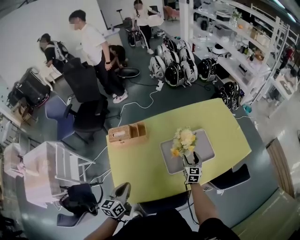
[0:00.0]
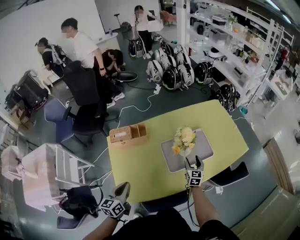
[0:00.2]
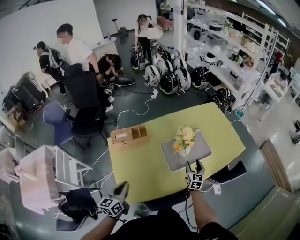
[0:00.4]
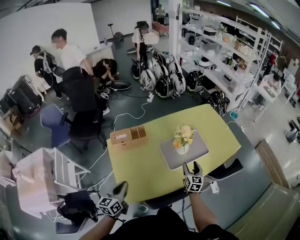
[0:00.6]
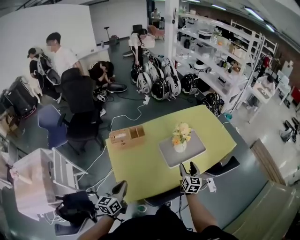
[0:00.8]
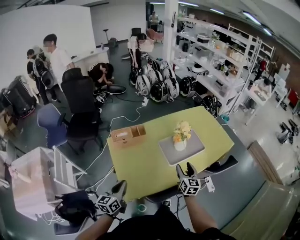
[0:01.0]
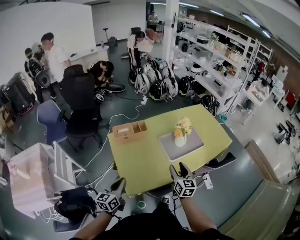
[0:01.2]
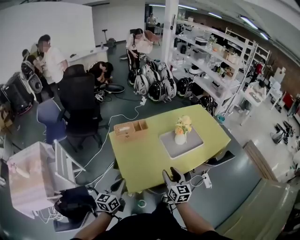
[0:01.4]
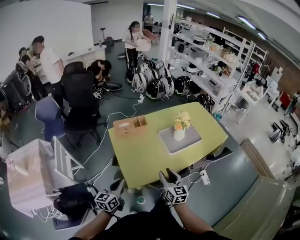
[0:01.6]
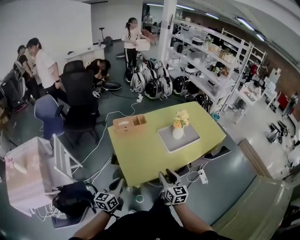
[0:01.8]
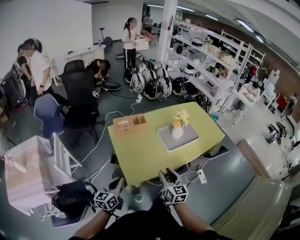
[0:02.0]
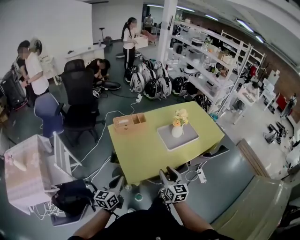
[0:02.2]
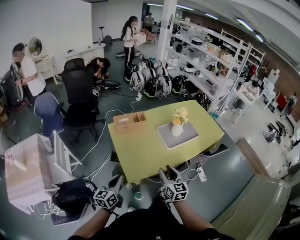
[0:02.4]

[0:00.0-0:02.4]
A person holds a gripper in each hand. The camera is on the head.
0:00.0 to 0:01.2: The right gripper shifts about 40 cm backward, upward and to the left. The left gripper travels backward and to the left by about 20 cm.
0:01.2 to 0:02.4: The right gripper heads backward and to the left, covering about 15 cm. Meanwhile the left gripper shifts roughly 10 cm backward.

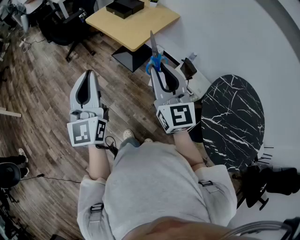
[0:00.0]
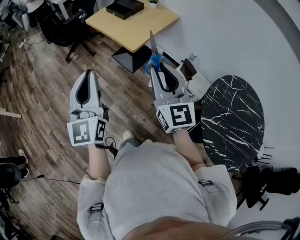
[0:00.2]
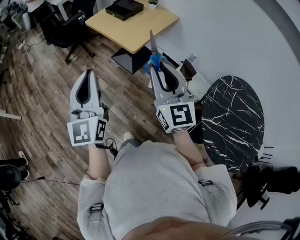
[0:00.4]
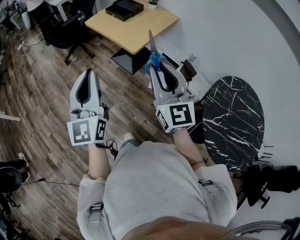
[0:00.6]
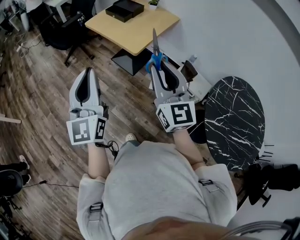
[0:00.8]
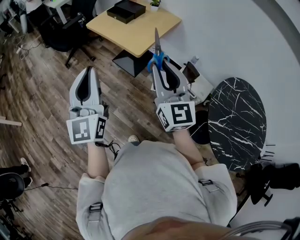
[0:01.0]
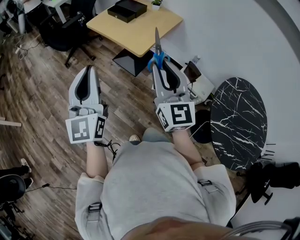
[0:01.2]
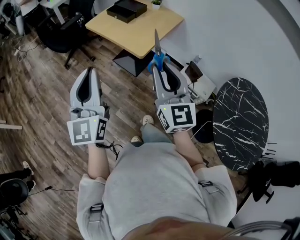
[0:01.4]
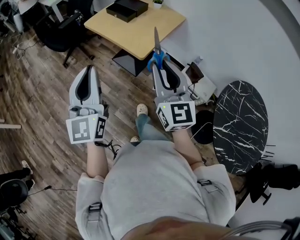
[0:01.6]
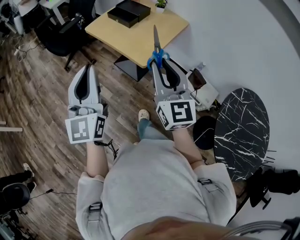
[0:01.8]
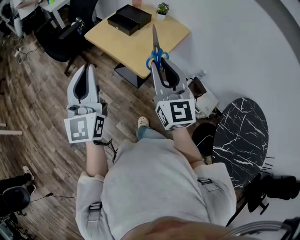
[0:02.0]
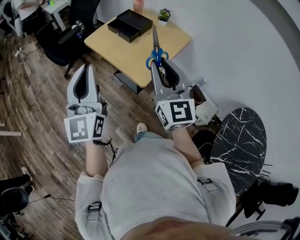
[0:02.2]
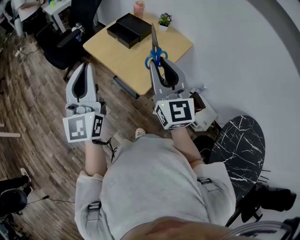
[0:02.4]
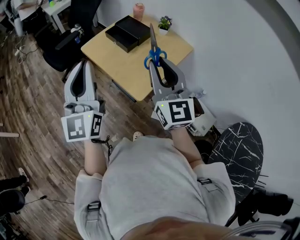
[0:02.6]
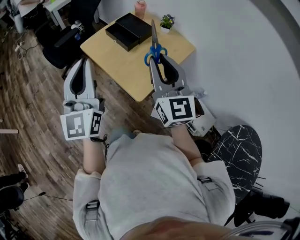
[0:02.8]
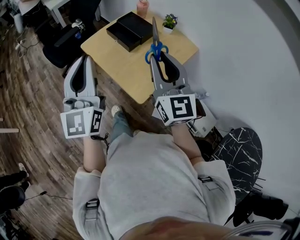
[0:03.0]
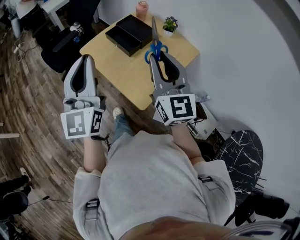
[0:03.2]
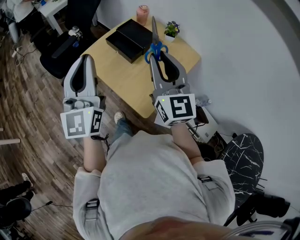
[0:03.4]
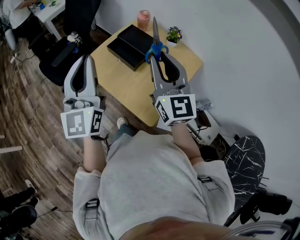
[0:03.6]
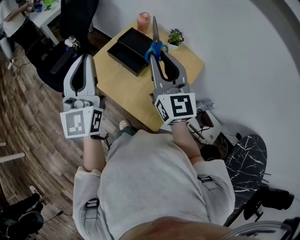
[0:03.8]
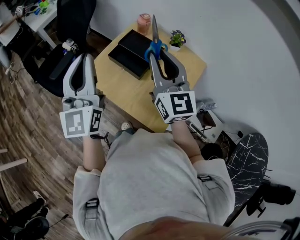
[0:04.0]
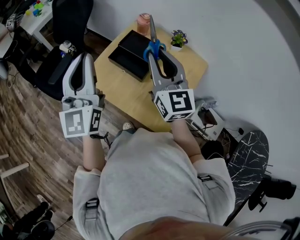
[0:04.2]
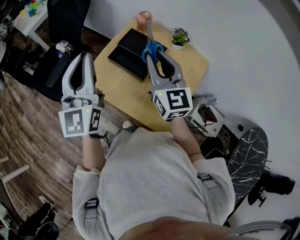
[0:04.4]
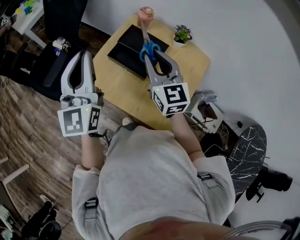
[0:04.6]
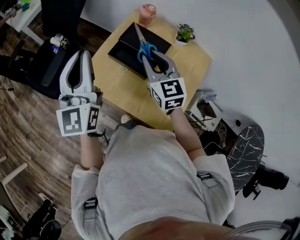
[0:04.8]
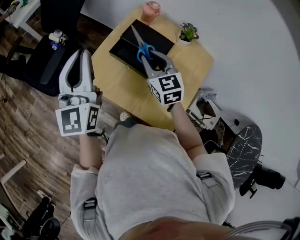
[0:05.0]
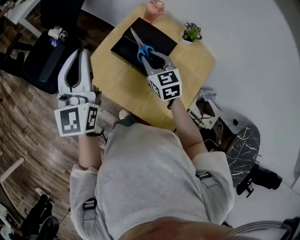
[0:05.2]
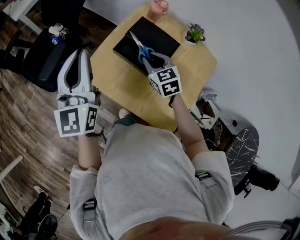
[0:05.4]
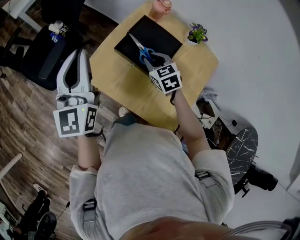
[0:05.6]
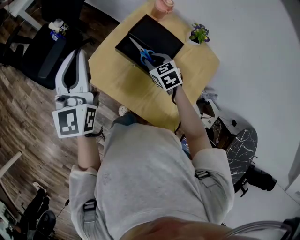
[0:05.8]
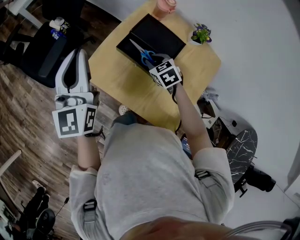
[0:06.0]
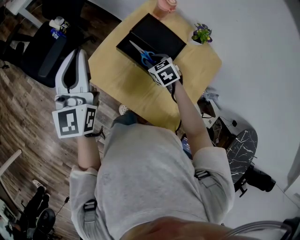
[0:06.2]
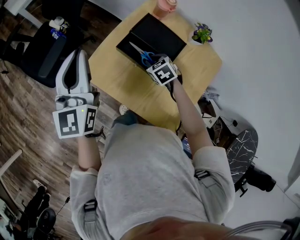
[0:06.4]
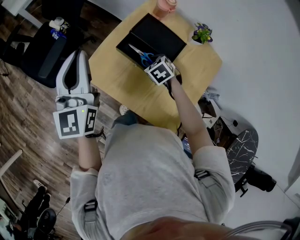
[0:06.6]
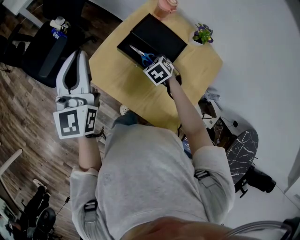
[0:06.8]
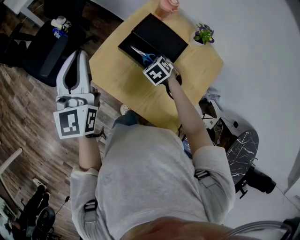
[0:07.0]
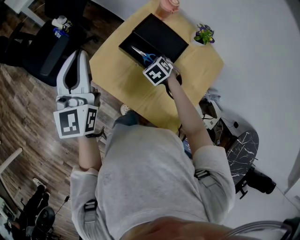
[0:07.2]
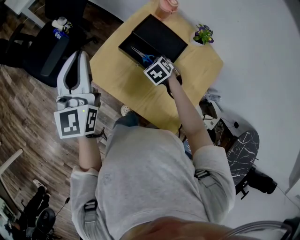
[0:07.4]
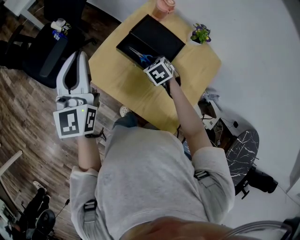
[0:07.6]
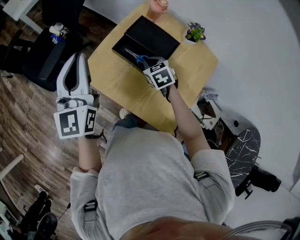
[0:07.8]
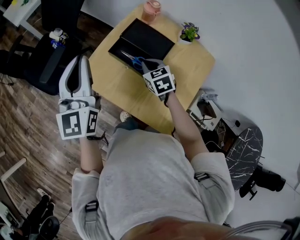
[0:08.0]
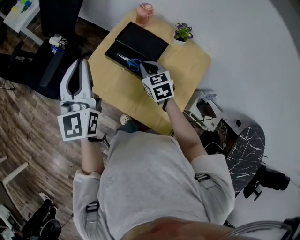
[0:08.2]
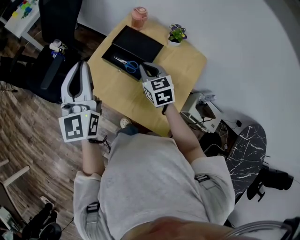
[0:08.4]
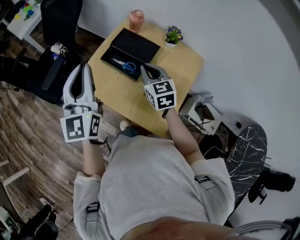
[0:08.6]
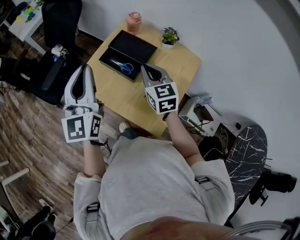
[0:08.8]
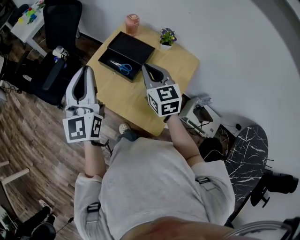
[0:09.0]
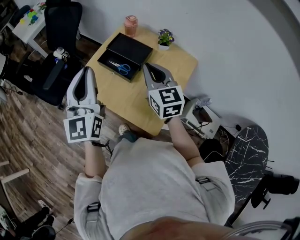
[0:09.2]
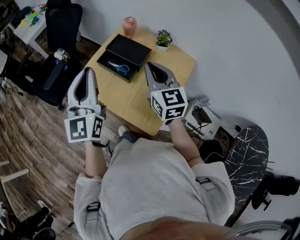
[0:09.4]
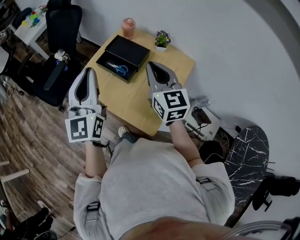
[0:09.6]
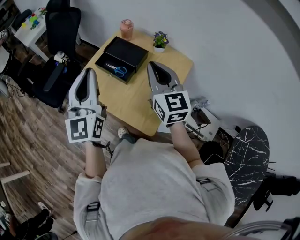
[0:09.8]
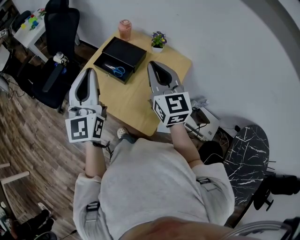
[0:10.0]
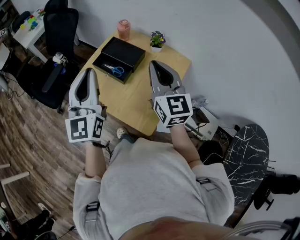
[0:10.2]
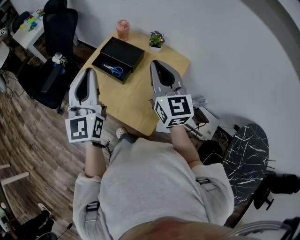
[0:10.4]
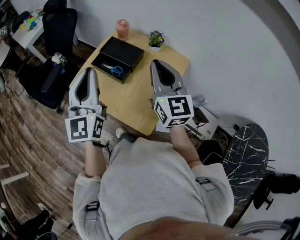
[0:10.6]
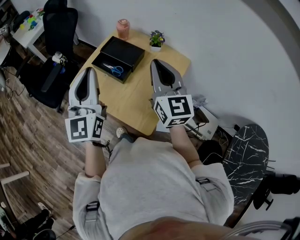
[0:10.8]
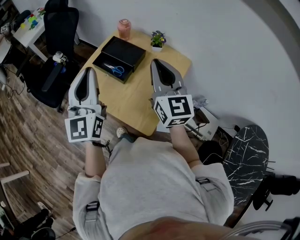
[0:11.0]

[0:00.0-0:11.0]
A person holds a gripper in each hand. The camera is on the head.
0:00.0 to 0:01.6: The grippers both shift forward and to the left by about 15 cm.
0:01.6 to 0:03.2: The two grippers go about 35 cm forward.
0:03.2 to 0:04.8: The left gripper moves forward, about 30 cm. The right gripper moves forward and downward, approximately 30 cm, and rotates approximately 20 degrees.
0:04.8 to 0:06.2: The right gripper goes roughly 20 cm downward, and tilts its fingers approximately 40 degrees downward. The left gripper is displaced downward by about 5 cm.
0:06.2 to 0:07.8: The grippers stay close to where they were, moving slightly.
0:07.8 to 0:09.4: The left gripper heads backward, to the right and upward, covering roughly 20 cm; the right gripper shifts some 30 cm upward and backward, and tilts its fingers about 40 degrees upward.
0:09.4 to 0:11.0: The right gripper shifts about 5 cm upward.

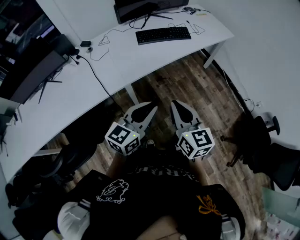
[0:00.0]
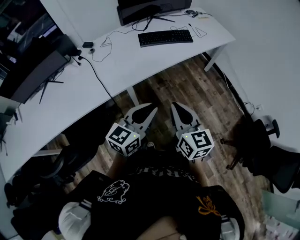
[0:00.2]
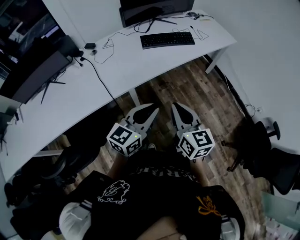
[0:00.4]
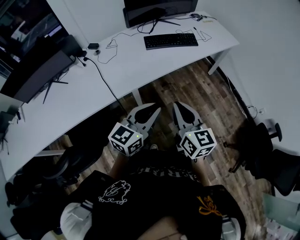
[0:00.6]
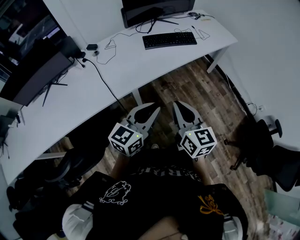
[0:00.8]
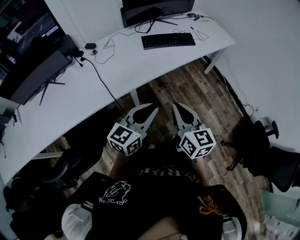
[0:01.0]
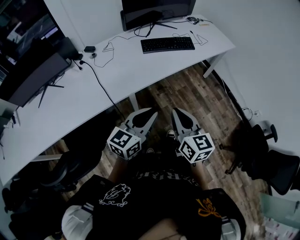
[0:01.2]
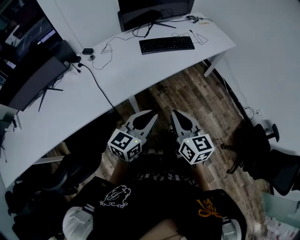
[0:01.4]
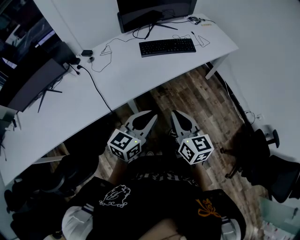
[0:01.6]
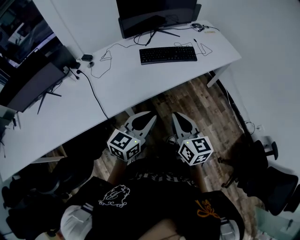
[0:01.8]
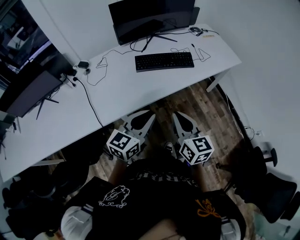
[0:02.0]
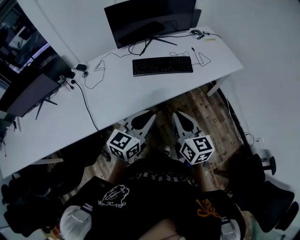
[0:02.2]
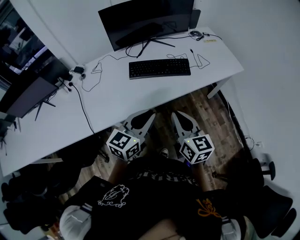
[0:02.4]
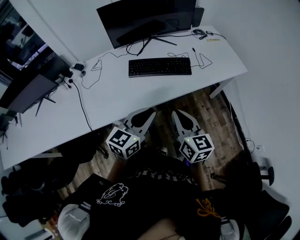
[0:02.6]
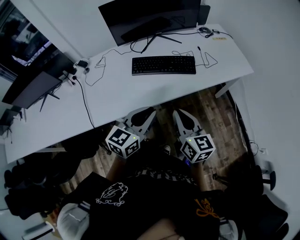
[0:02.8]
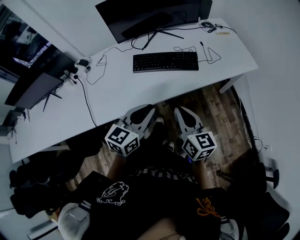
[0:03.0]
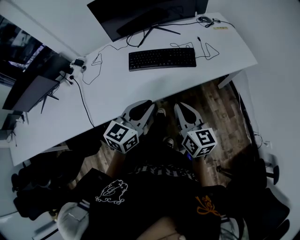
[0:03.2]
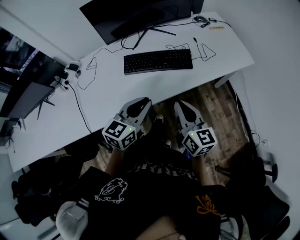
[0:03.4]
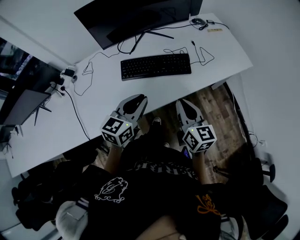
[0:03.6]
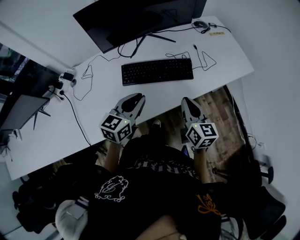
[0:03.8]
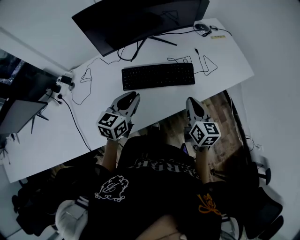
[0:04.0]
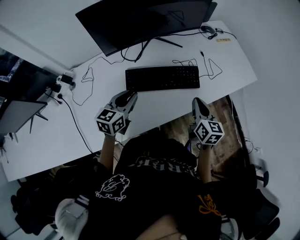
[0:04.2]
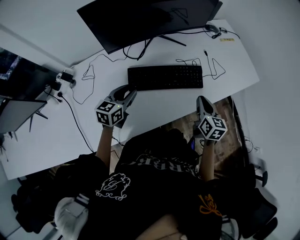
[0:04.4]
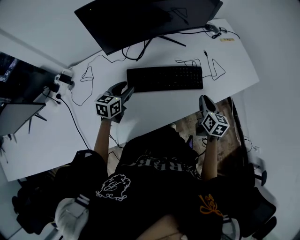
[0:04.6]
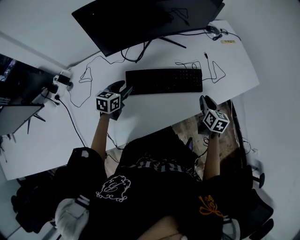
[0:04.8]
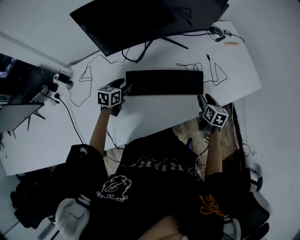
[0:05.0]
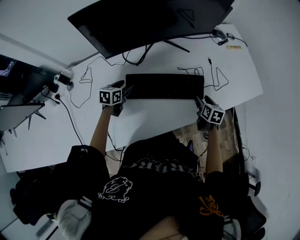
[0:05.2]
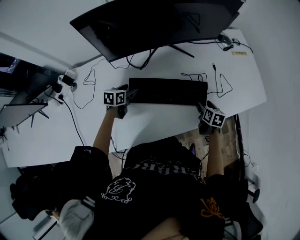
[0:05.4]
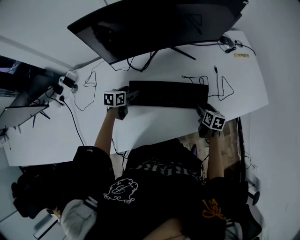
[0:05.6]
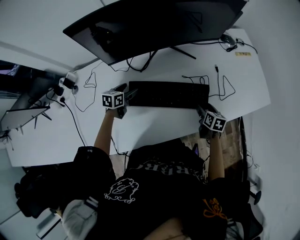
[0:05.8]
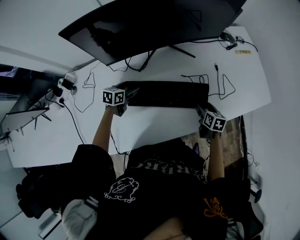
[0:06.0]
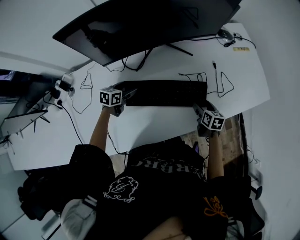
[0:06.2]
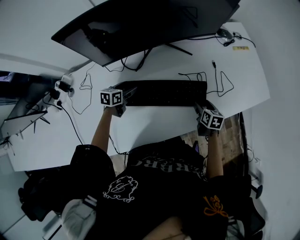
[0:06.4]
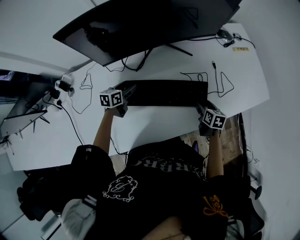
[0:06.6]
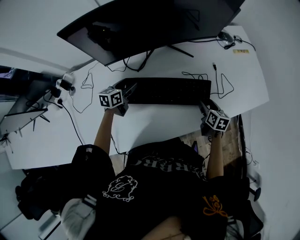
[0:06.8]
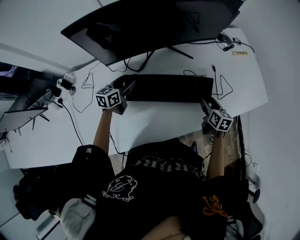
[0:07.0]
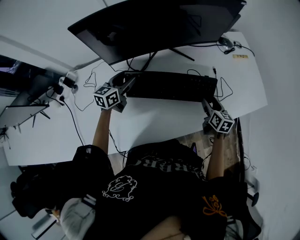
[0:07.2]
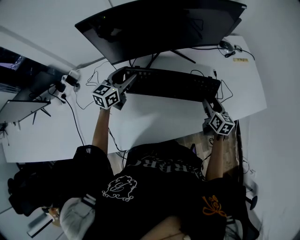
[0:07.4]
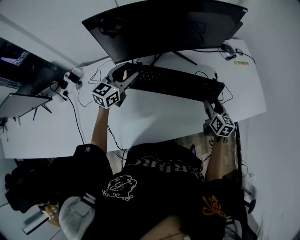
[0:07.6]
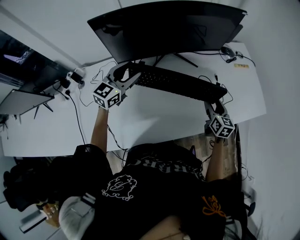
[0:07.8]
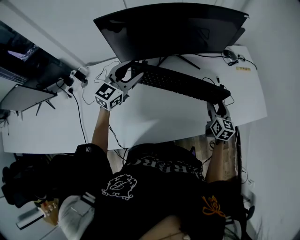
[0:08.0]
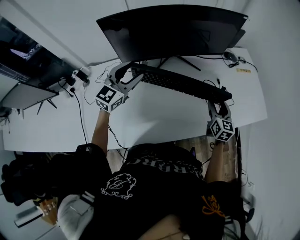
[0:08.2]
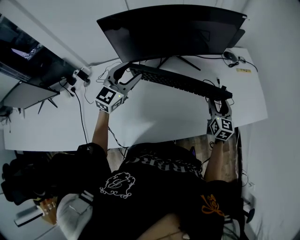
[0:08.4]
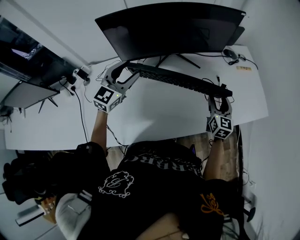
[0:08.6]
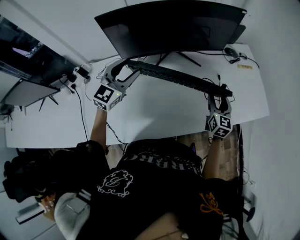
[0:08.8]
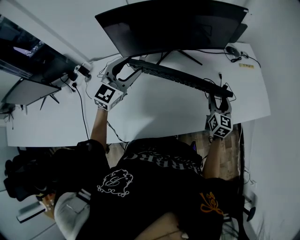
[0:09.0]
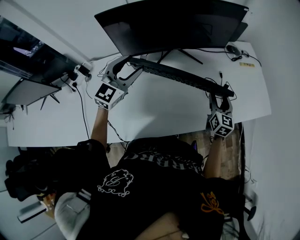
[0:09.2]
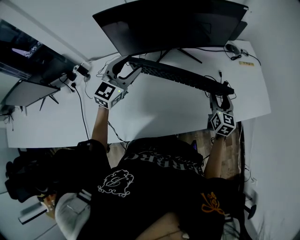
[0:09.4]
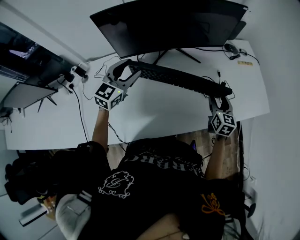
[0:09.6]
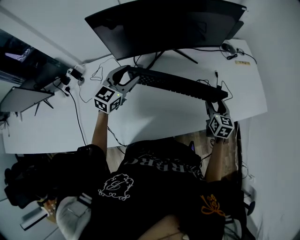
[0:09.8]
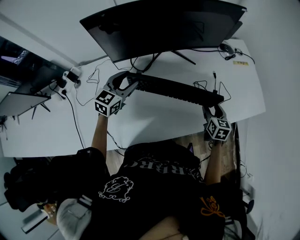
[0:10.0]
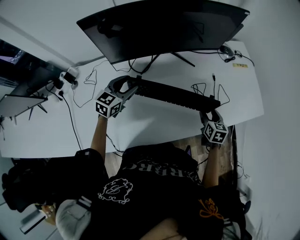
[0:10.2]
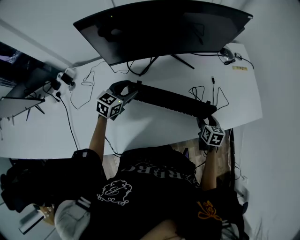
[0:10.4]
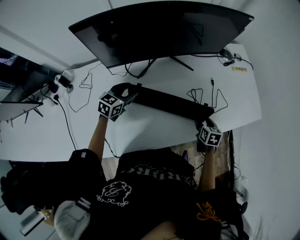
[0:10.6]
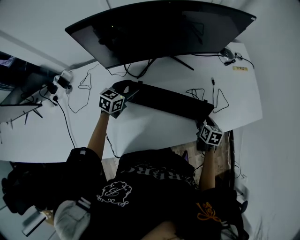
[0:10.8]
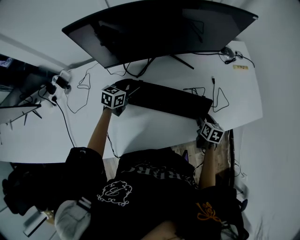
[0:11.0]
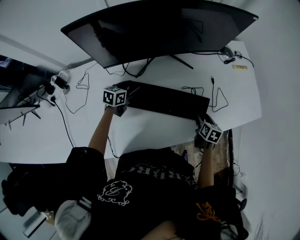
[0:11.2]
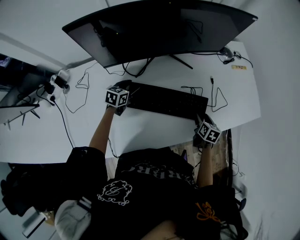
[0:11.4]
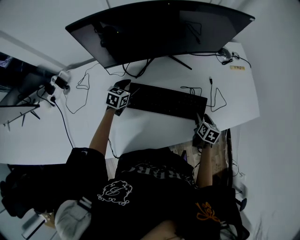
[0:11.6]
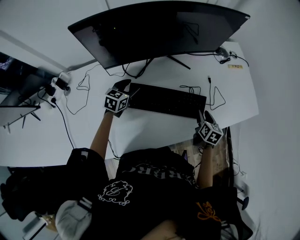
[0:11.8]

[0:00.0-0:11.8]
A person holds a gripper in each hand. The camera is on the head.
0:00.0 to 0:01.4: The left gripper moves roughly 5 cm, while the right gripper moves some 5 cm.
0:01.4 to 0:03.0: Both grippers move forward and to the right, some 35 cm.
0:03.0 to 0:04.4: The right gripper heads forward and downward, covering some 30 cm, and turns by about 20 degrees. Meanwhile the left gripper moves forward, to the left and downward, some 35 cm.
0:04.4 to 0:06.0: The two grippers go approximately 20 cm downward and forward. The right gripper changes its angle by roughly 30 degrees, and opens its fingers; the left gripper turns by about 20 degrees, and opens up.
0:06.0 to 0:07.4: The left gripper heads upward, covering roughly 20 cm, and rotates some 30 degrees; the right gripper shifts some 10 cm upward.
0:07.4 to 0:08.8: The right gripper heads upward, covering approximately 10 cm, and turns by approximately 20 degrees, while the left gripper shifts roughly 15 cm upward and backward, and changes its angle by some 30 degrees.
0:08.8 to 0:10.4: Both grippers travel together downward, about 15 cm. The left gripper rotates about 30 degrees, while the right gripper points its fingers some 30 degrees further downward.
0:10.4 to 0:11.8: The left gripper moves downward, about 5 cm.
